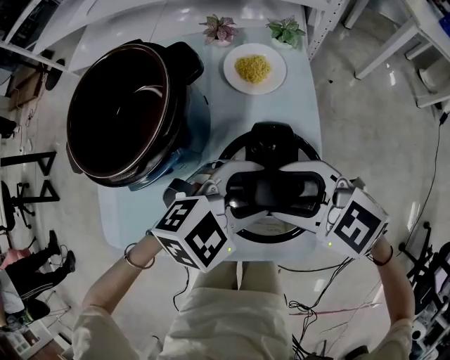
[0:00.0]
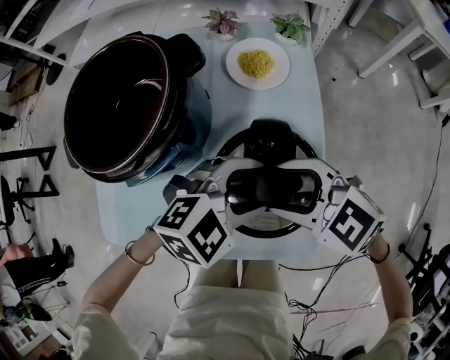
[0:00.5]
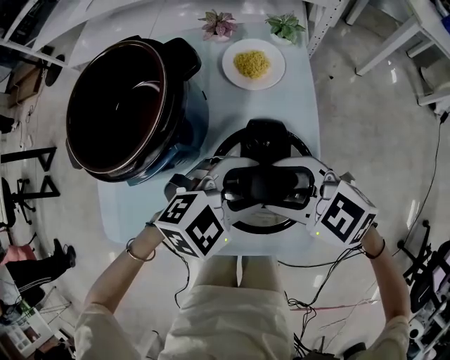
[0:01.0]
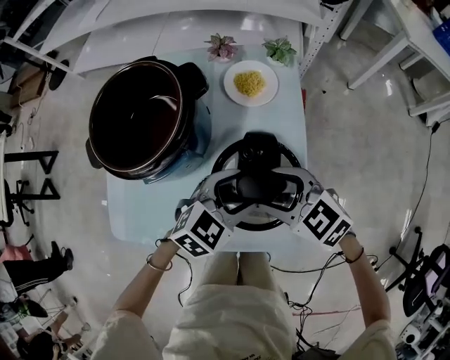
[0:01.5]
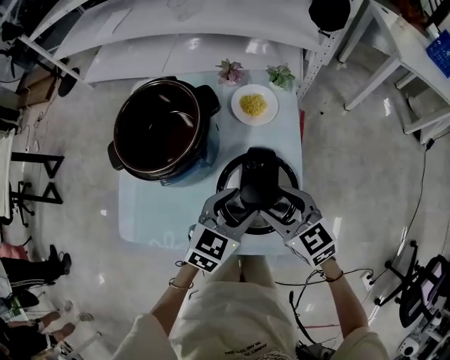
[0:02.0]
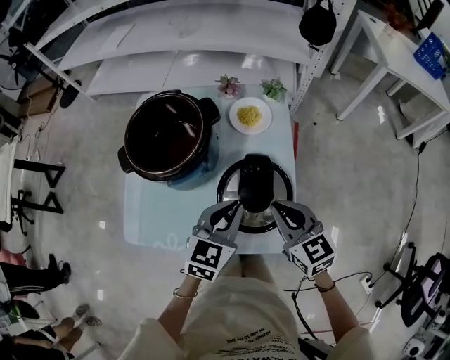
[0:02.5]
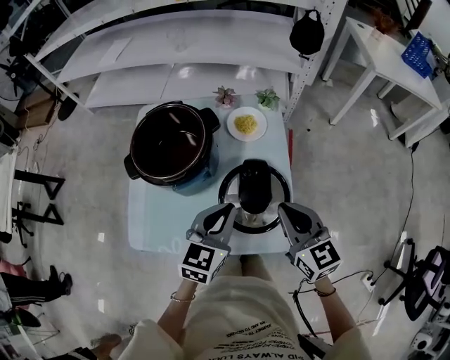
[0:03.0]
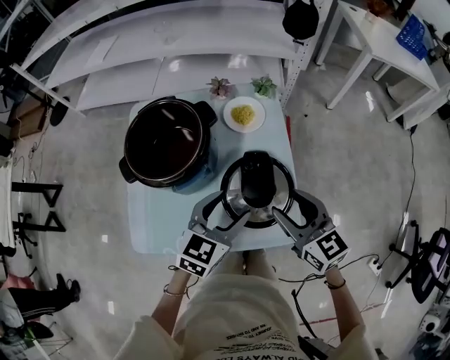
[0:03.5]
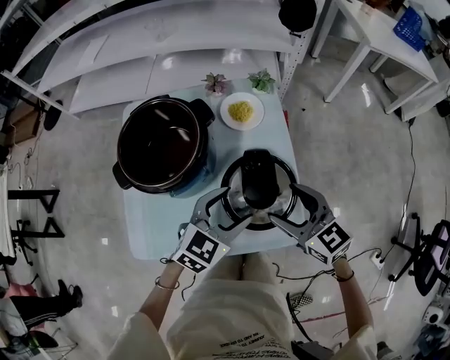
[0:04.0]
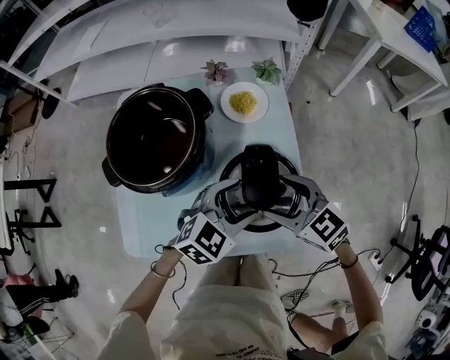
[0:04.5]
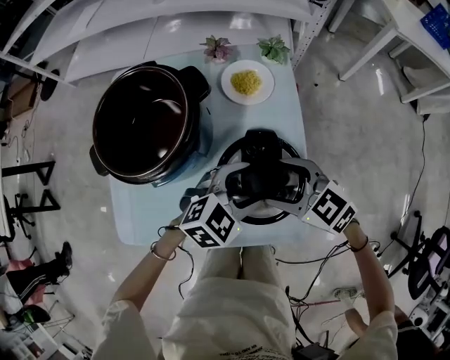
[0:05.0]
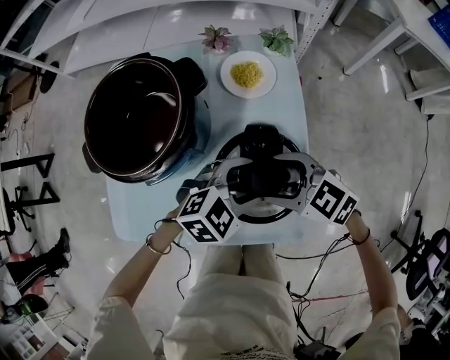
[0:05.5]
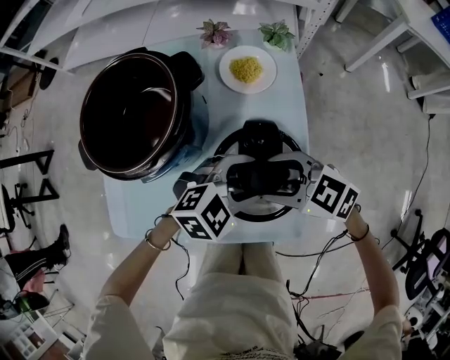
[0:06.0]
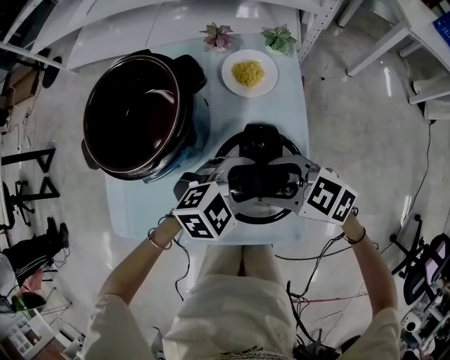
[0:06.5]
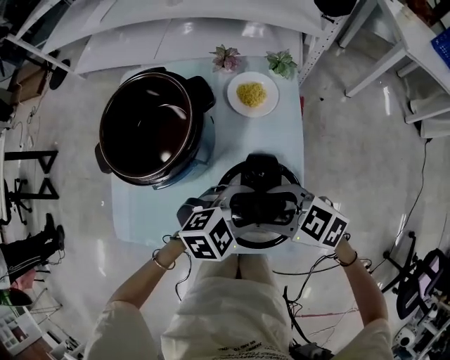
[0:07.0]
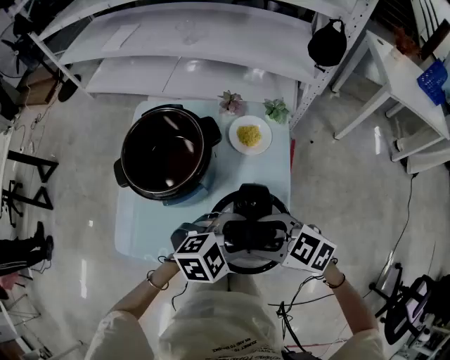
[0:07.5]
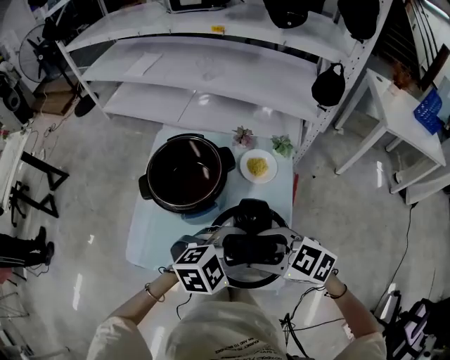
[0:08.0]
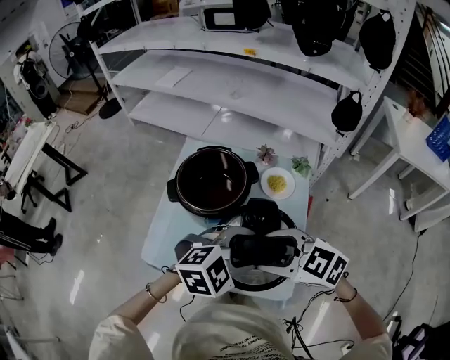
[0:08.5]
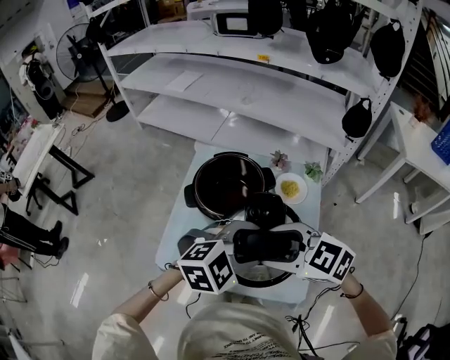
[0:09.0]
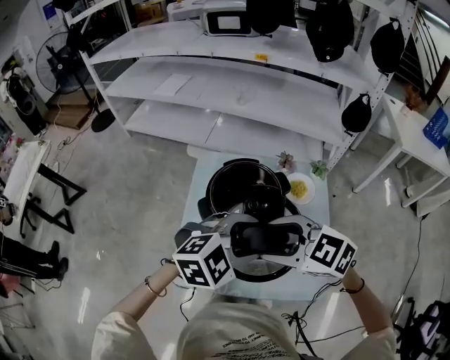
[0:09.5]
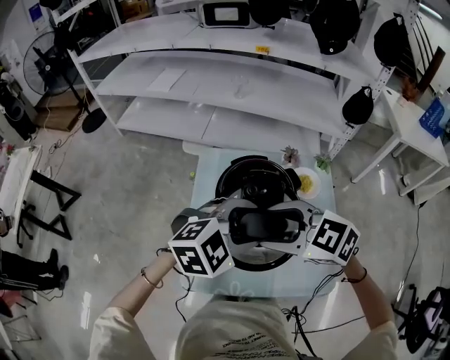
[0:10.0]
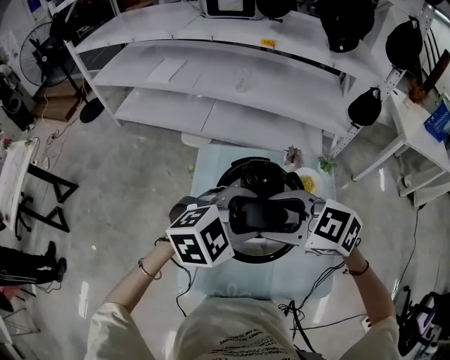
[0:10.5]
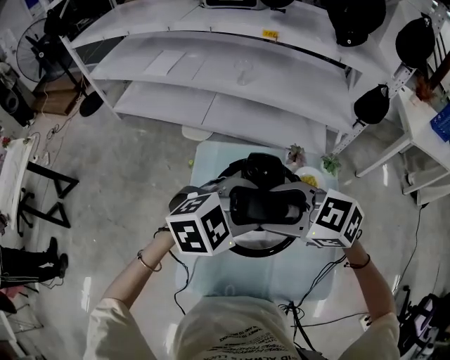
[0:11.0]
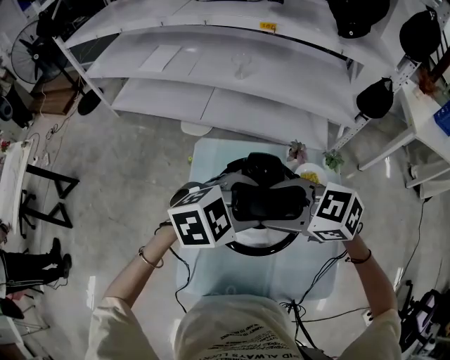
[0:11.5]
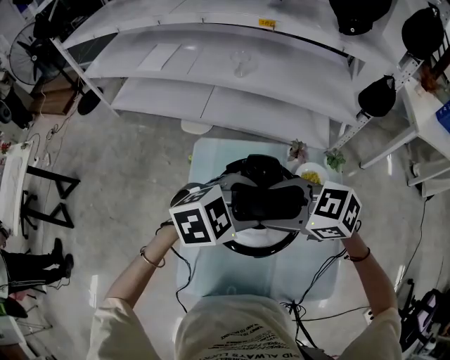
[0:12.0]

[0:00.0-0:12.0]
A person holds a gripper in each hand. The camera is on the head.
0:00.0 to 0:02.0: The right gripper rotates some 30 degrees, while the left gripper swivels about 40 degrees.
0:02.0 to 0:04.0: The left gripper closes and opens again. The right gripper moves upward, approximately 5 cm, and closes and opens again.
0:04.0 to 0:06.0: The two grippers go some 10 cm downward. The left gripper swivels roughly 30 degrees; the right gripper turns by approximately 40 degrees.
0:06.0 to 0:08.0: The two grippers go approximately 15 cm upward.
0:08.0 to 0:10.0: The left gripper moves some 25 cm. The right gripper changes place by some 25 cm.
0:10.0 to 0:12.0: The right gripper moves roughly 10 cm; the left gripper moves roughly 10 cm.

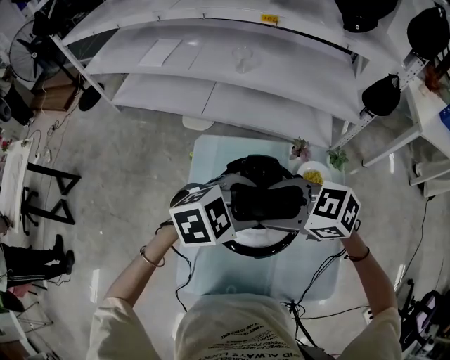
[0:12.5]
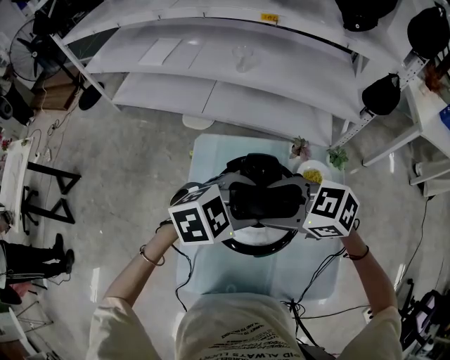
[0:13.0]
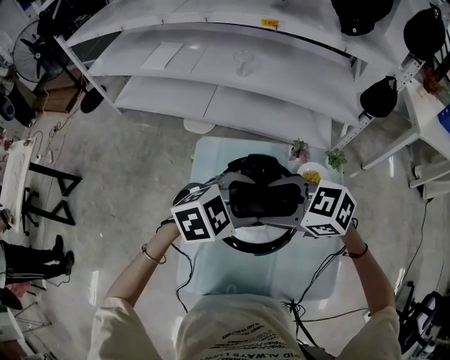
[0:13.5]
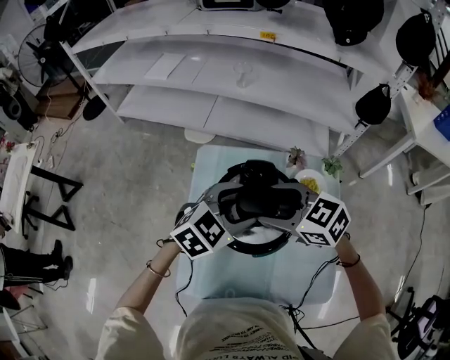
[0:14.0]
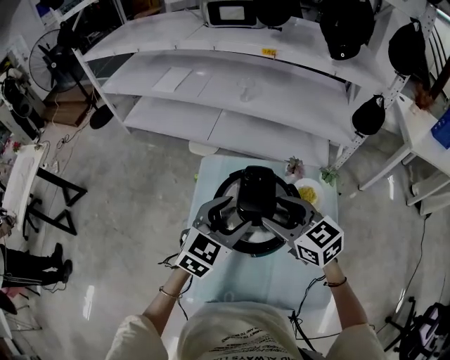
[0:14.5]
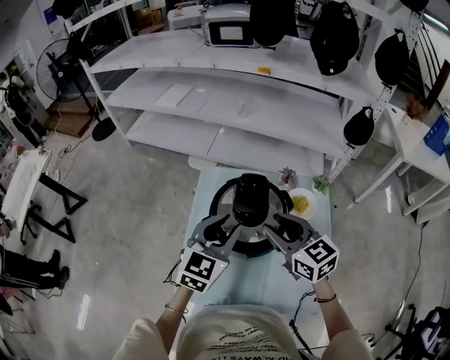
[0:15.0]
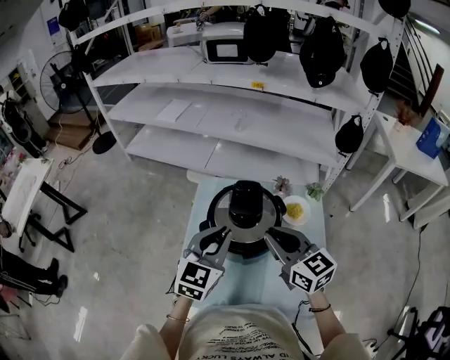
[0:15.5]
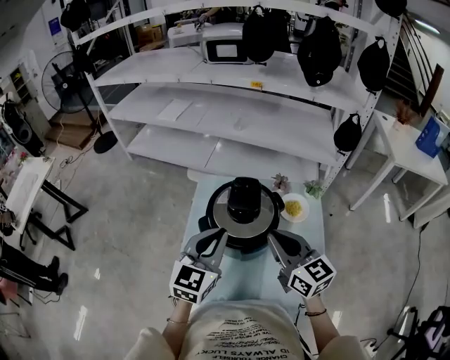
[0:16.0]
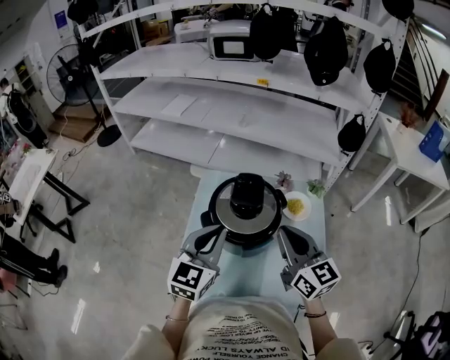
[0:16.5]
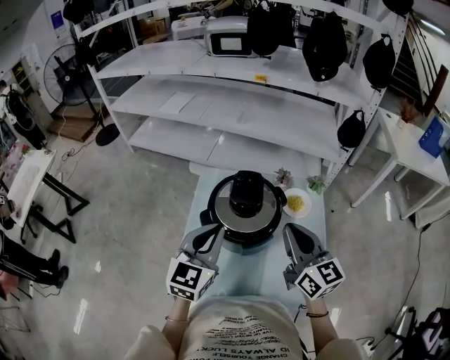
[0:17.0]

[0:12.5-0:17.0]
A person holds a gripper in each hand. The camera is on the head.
0:12.5 to 0:14.5: The right gripper changes its angle by approximately 30 degrees. Meanwhile the left gripper turns by about 40 degrees.
0:14.5 to 0:17.0: The right gripper shifts roughly 15 cm backward, to the right and upward, swivels about 30 degrees, and closes. Meanwhile the left gripper moves backward and upward, roughly 10 cm, swivels some 20 degrees, and closes up.

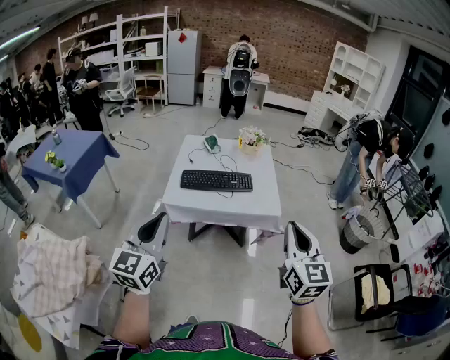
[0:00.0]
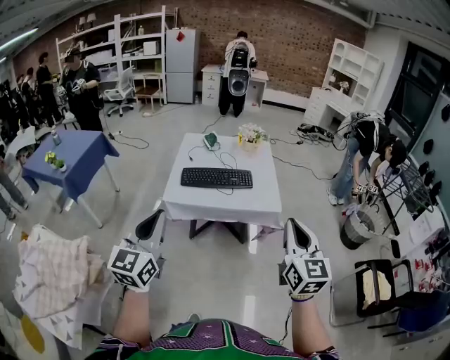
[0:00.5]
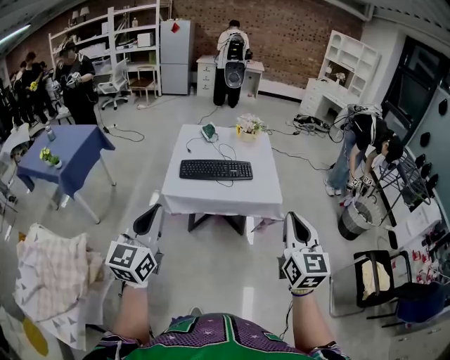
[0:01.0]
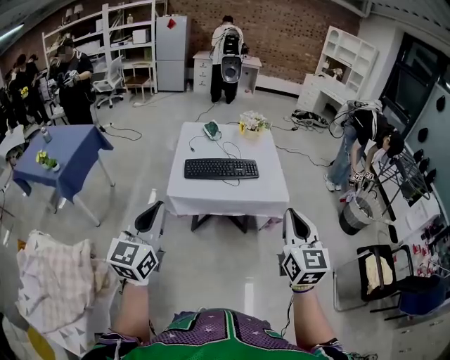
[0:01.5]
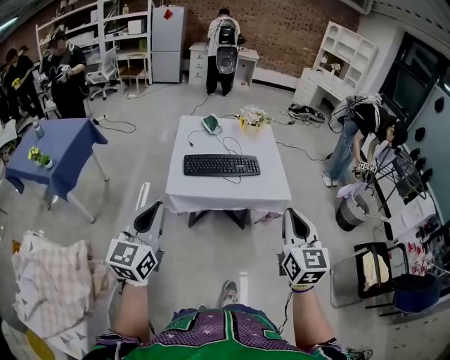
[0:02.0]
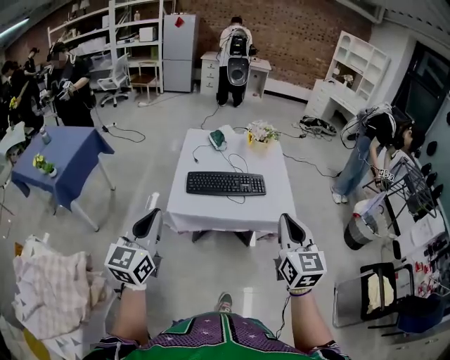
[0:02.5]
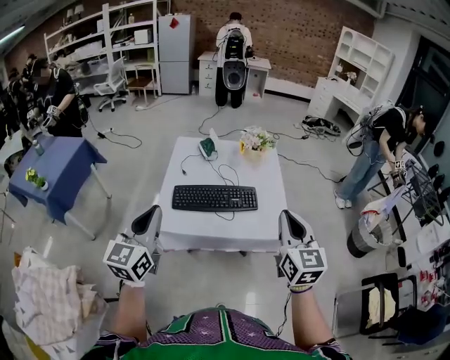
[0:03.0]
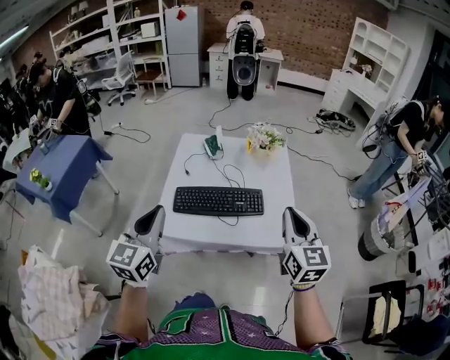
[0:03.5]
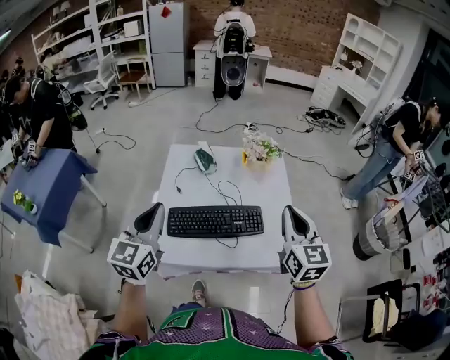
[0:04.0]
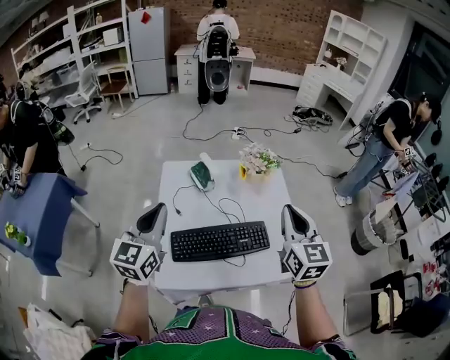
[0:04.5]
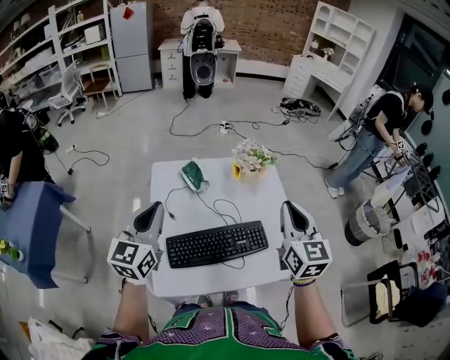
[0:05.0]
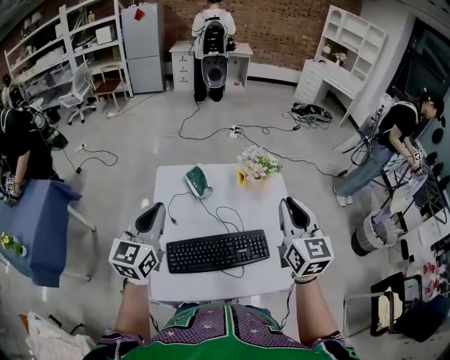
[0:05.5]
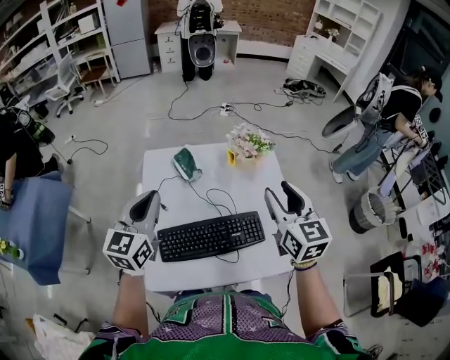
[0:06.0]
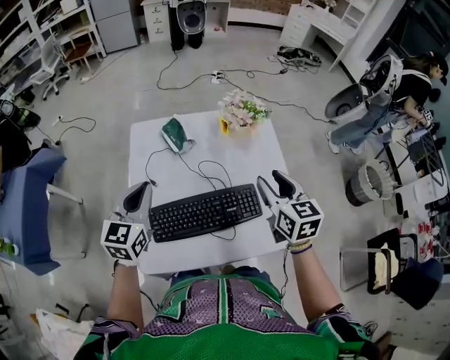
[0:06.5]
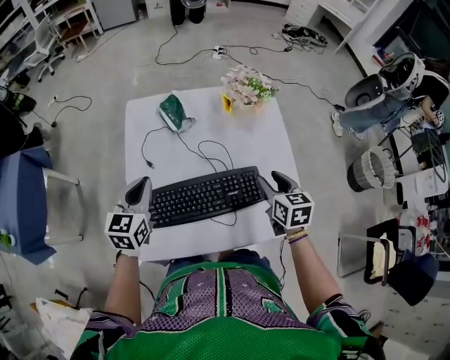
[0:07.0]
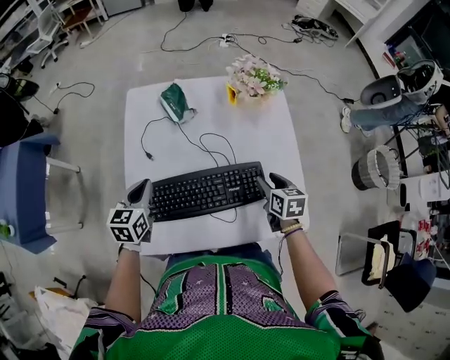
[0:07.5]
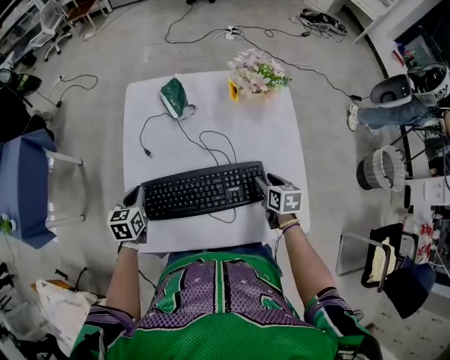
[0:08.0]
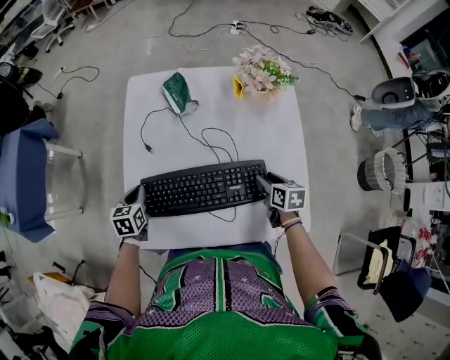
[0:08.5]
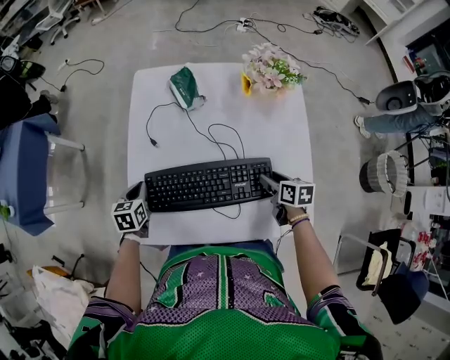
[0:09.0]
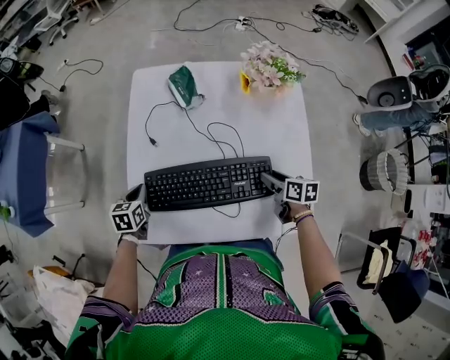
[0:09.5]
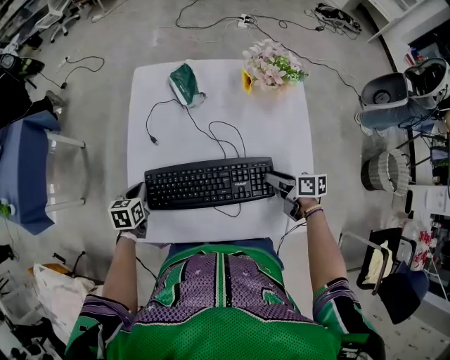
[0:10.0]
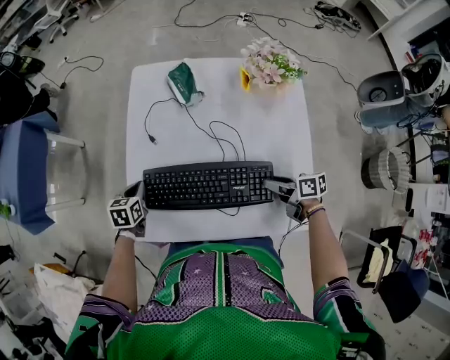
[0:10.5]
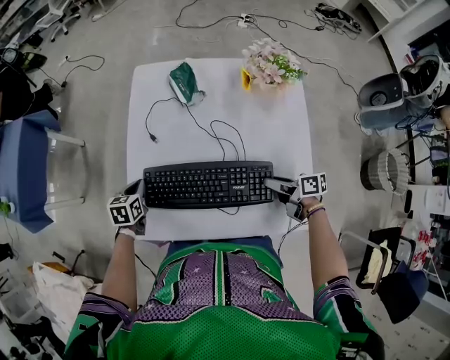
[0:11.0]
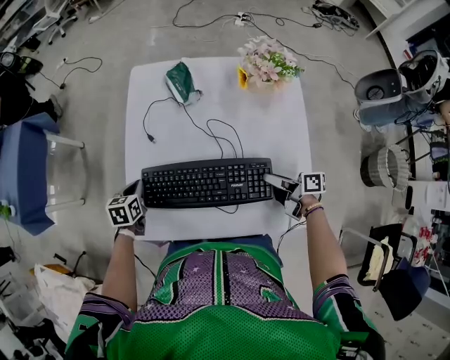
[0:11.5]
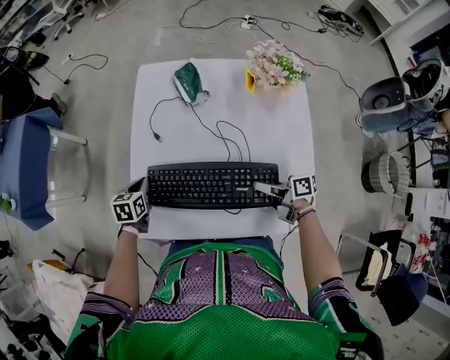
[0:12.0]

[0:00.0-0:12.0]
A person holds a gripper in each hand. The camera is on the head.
0:00.0 to 0:02.0: The left gripper is displaced to the left and forward by about 15 cm. The right gripper moves to the left, approximately 10 cm.
0:02.0 to 0:04.0: The grippers both shift forward by about 40 cm.
0:04.0 to 0:06.0: The two grippers go some 15 cm forward. The right gripper opens its fingers.
0:06.0 to 0:08.0: The two grippers go roughly 35 cm downward. The left gripper angles its fingers downward, by approximately 40 degrees; the right gripper points its fingers some 40 degrees further downward.
0:08.0 to 0:10.0: The left gripper shifts by about 5 cm, while the right gripper swivels about 30 degrees.
0:10.0 to 0:12.0: The right gripper travels to the left by roughly 5 cm, turns by roughly 20 degrees, and closes up.
